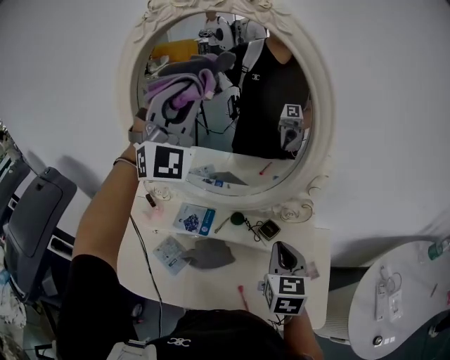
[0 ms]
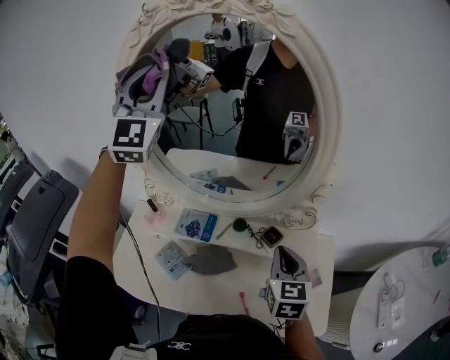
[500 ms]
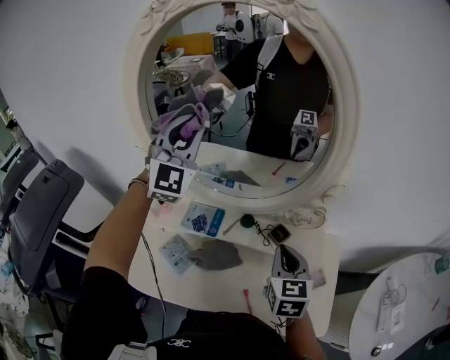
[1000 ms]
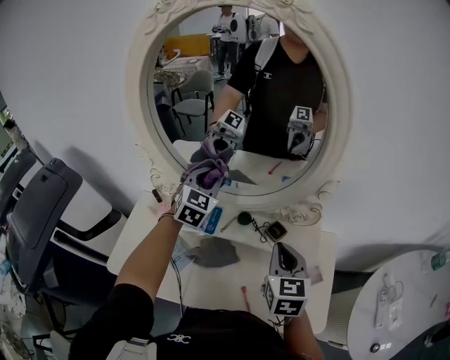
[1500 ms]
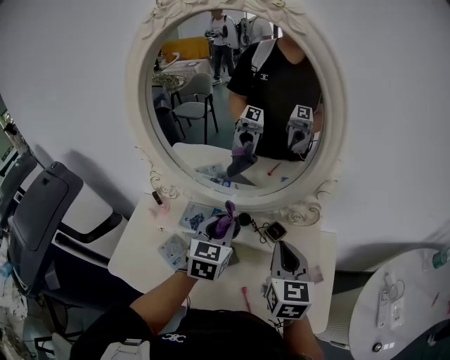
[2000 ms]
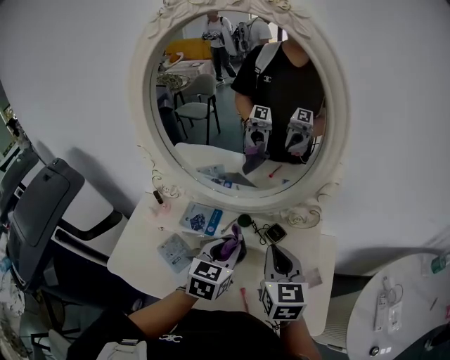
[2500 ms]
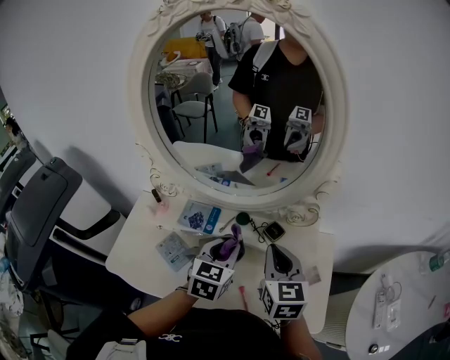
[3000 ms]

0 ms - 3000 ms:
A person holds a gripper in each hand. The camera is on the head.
0 ms - 1500 ms: The left gripper heads downward, covering about 30 cm, and points its fingers about 40 degrees further downward.
1500 ms - 3000 ms: The left gripper heads backward, downward and to the right, covering some 20 cm, and swivels about 30 degrees.

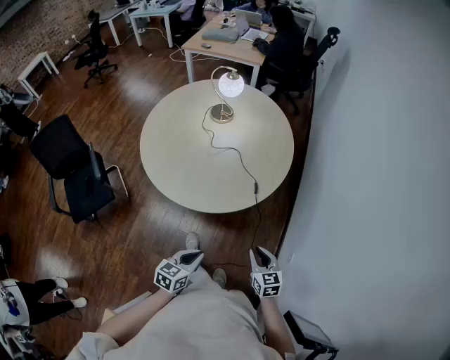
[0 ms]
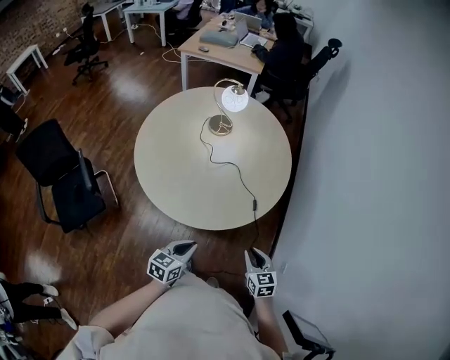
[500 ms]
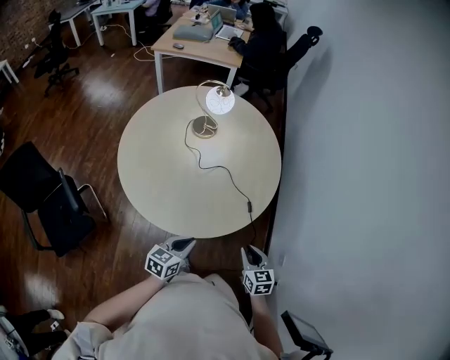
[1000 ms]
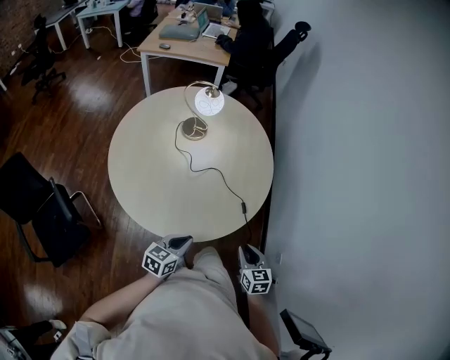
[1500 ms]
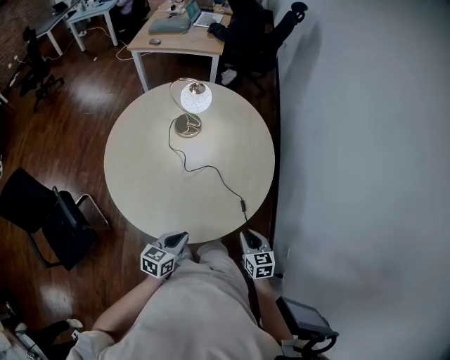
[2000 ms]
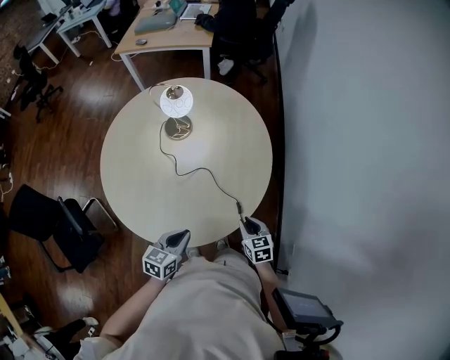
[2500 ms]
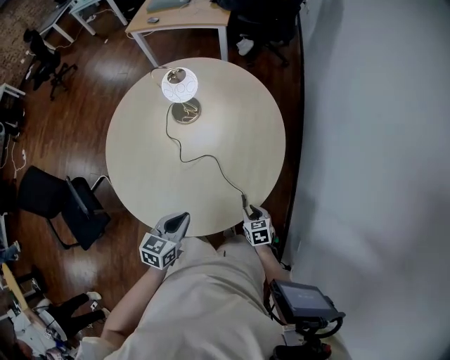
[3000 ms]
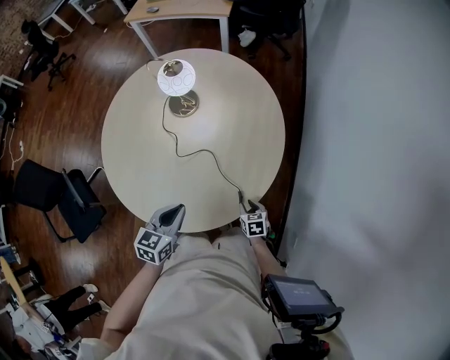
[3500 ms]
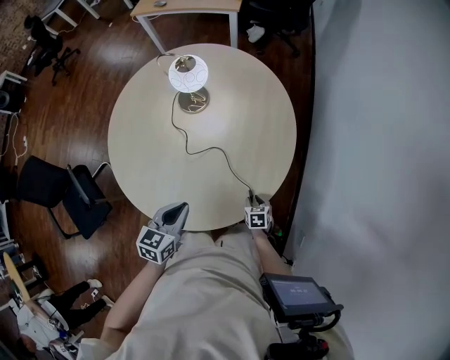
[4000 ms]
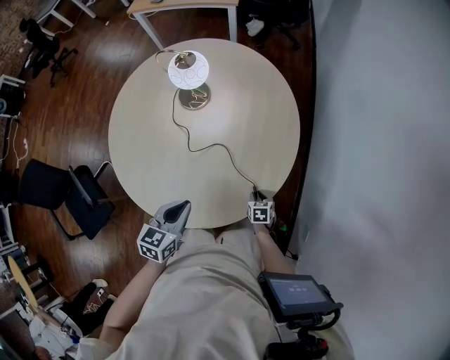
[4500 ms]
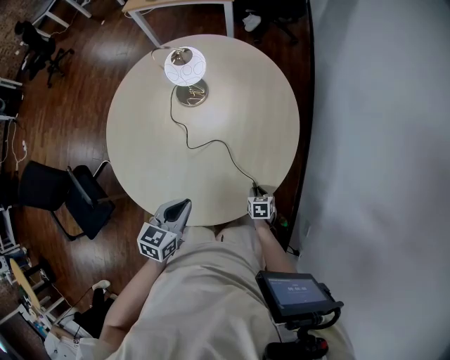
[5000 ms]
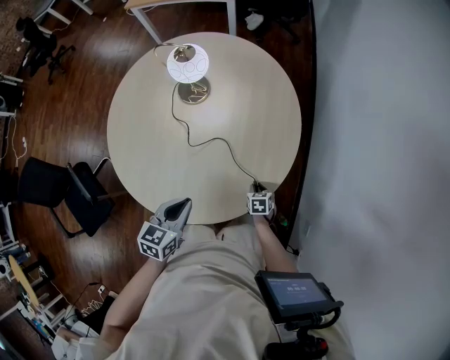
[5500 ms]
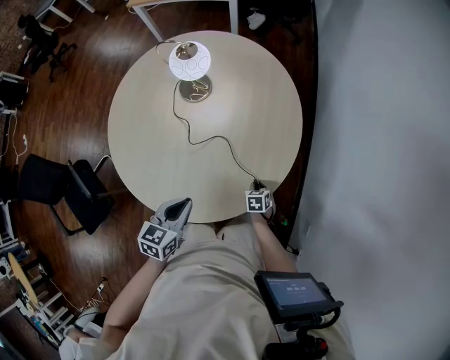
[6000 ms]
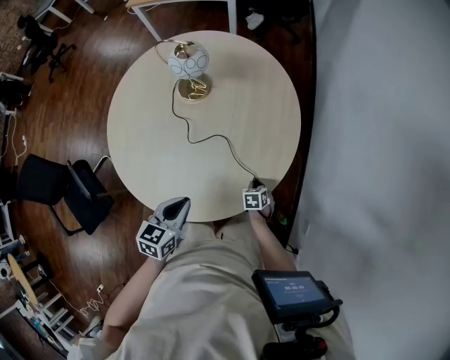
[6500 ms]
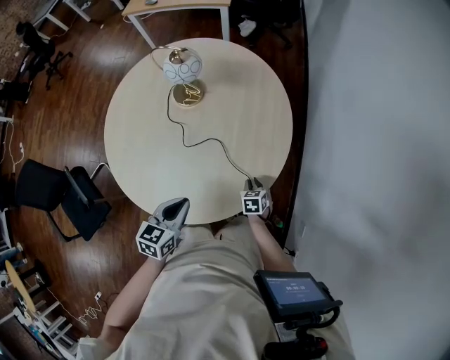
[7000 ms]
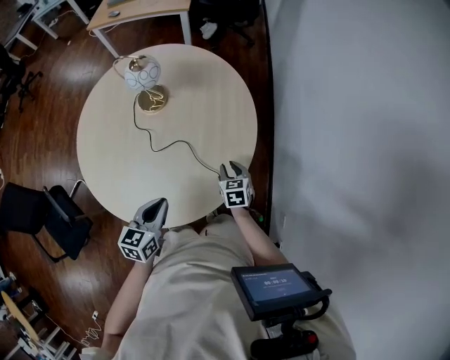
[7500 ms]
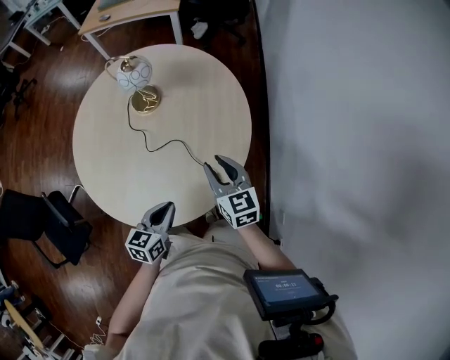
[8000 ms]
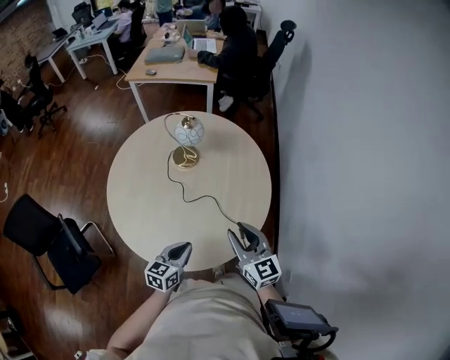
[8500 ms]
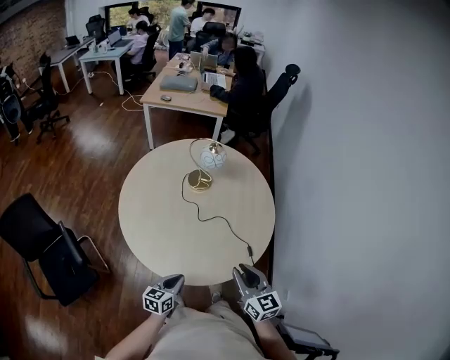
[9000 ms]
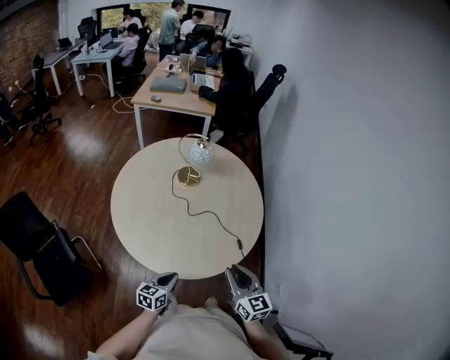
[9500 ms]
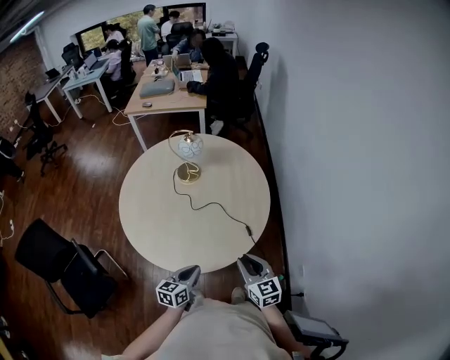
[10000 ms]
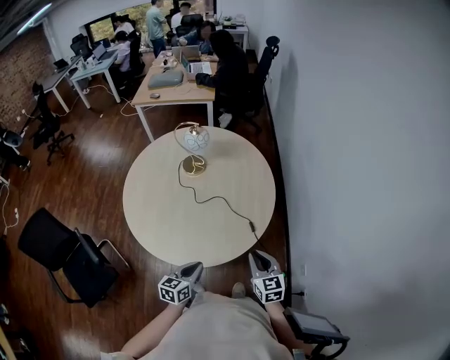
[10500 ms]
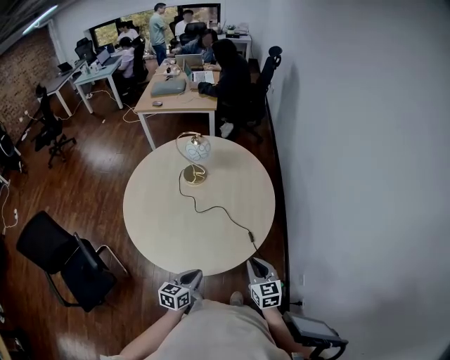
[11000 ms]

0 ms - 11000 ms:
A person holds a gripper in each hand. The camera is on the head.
0 ms - 2000 ms: Both grippers travel together forward and to the left, some 25 cm.
2000 ms - 3500 ms: The right gripper is displaced downward and forward by some 20 cm, and rotates approximately 20 degrees; the left gripper travels forward and to the right by about 15 cm.
3500 ms - 5500 ms: The right gripper travels downward by roughly 5 cm.
5500 ms - 7500 ms: The right gripper shifts about 15 cm upward and forward.
7500 ms - 9000 ms: The right gripper goes approximately 40 cm upward, backward and to the left, and points its fingers some 30 degrees further upward. Meanwhile the left gripper shifts roughly 20 cm backward and to the left.
9000 ms - 11000 ms: The left gripper is displaced to the right by approximately 10 cm. Meanwhile the right gripper is displaced to the right and downward by roughly 15 cm.

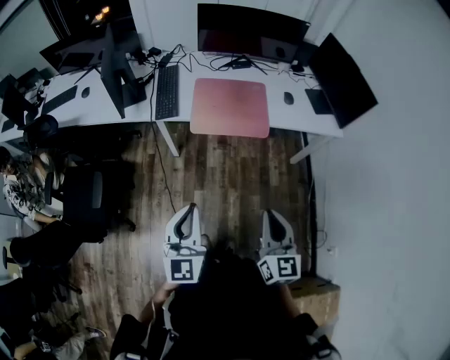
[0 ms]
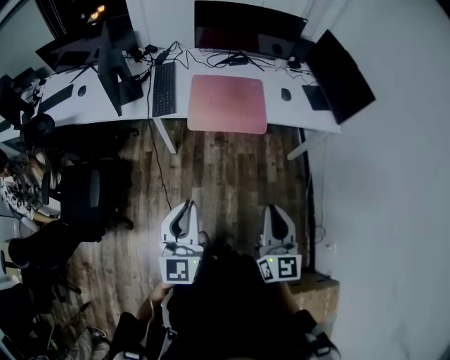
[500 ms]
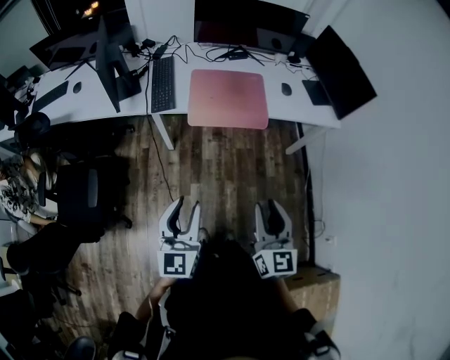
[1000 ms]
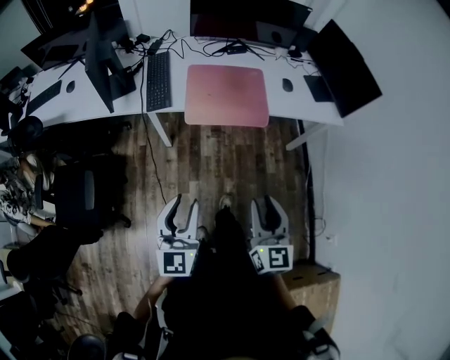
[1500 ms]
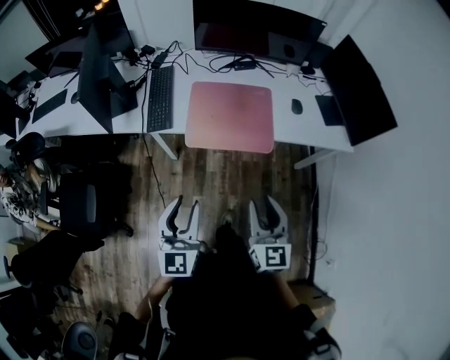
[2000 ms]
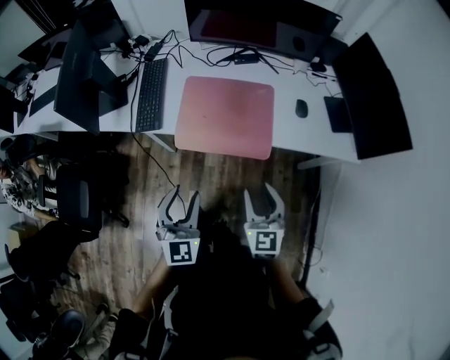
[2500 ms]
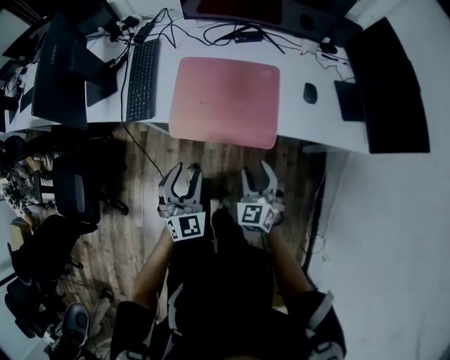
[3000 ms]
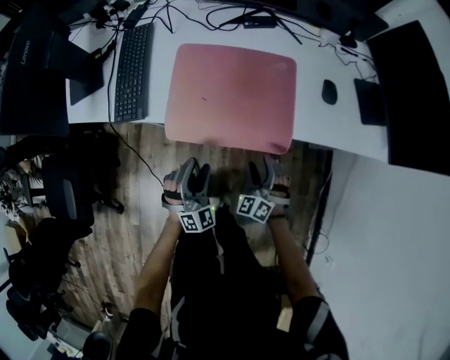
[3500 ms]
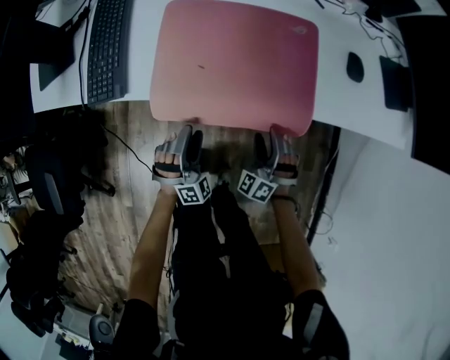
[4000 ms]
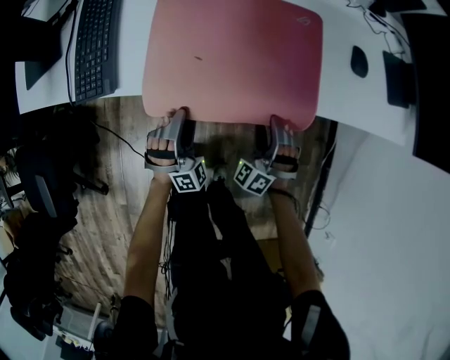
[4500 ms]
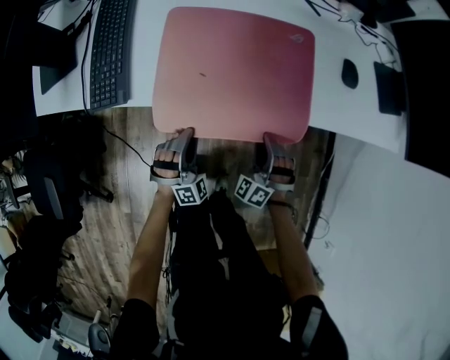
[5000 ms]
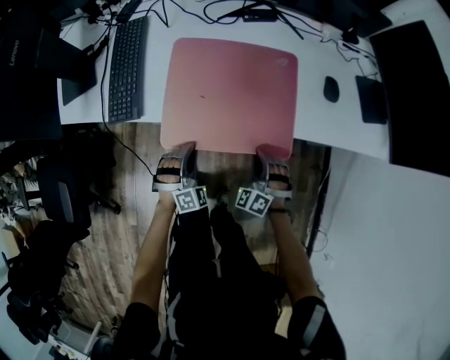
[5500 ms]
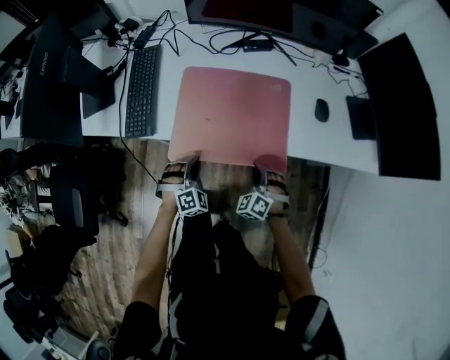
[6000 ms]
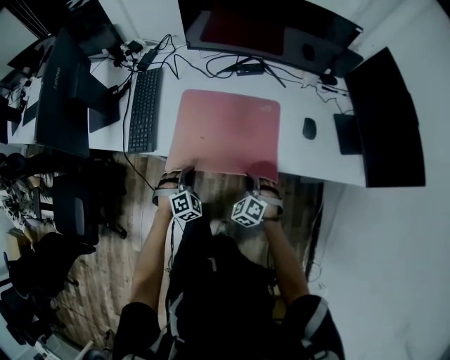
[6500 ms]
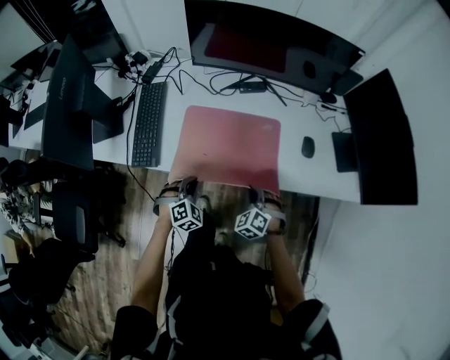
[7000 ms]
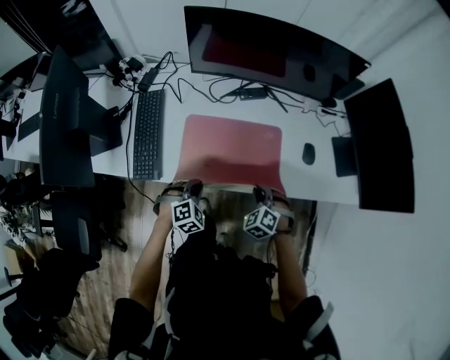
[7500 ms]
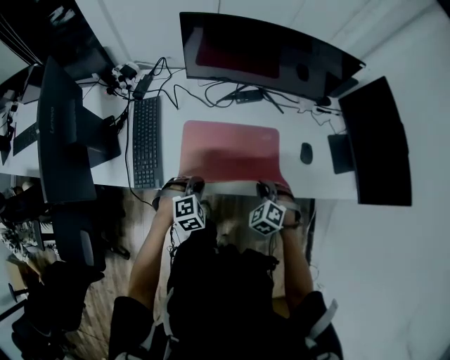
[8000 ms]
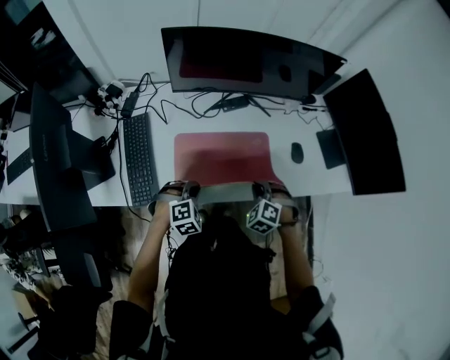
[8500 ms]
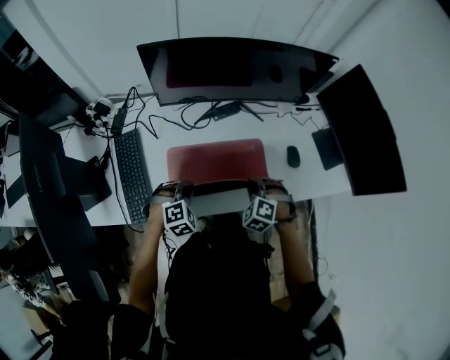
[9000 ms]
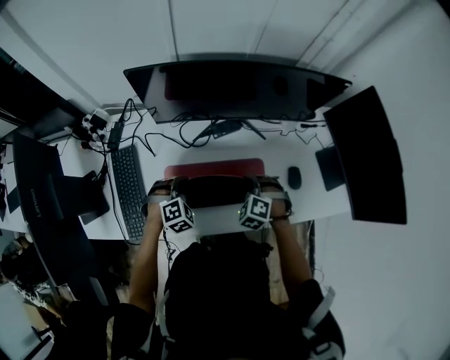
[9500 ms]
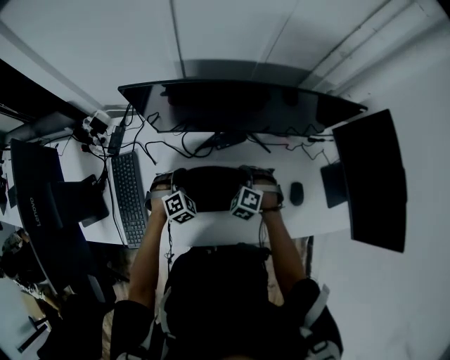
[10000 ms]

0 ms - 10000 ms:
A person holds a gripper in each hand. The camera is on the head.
0 ms - 2000 ms: Both grippers move forward, approximately 20 cm. The left gripper opens. The right gripper opens its fingers.
2000 ms - 4000 ms: The grippers both shift downward and forward by some 50 cm. The left gripper twists some 60 degrees clockwise, seen from behind, and opens. The right gripper rotates around the line of its fingers by roughly 70 degrees, counterclockwise from behind, and opens its fingers.
4000 ms - 6000 ms: The grippers both shift upward by approximately 5 cm. The left gripper turns by approximately 20 degrees, and closes its fingers, while the right gripper closes.
6000 ms - 8000 ms: The grippers both shift upward and forward by about 15 cm. The left gripper changes its angle by about 20 degrees.
8000 ms - 10000 ms: The two grippers go roughly 30 cm forward.

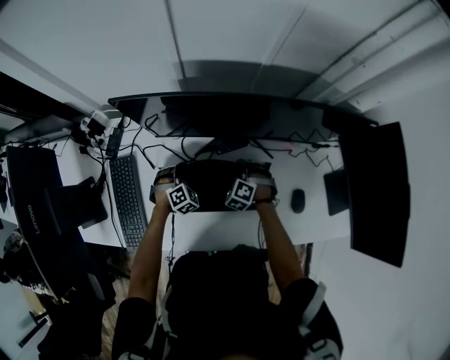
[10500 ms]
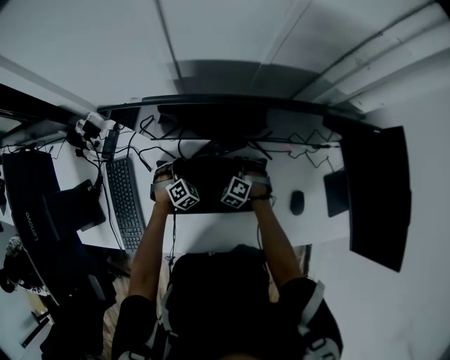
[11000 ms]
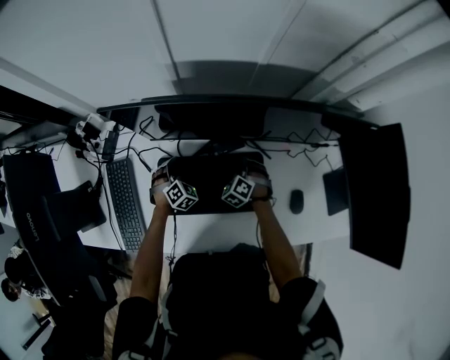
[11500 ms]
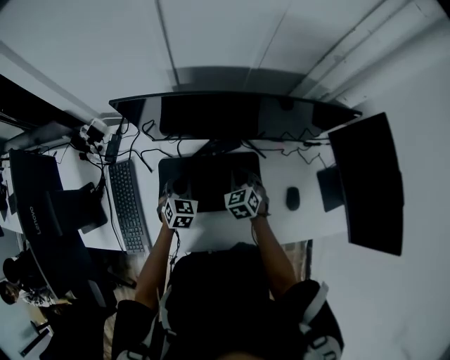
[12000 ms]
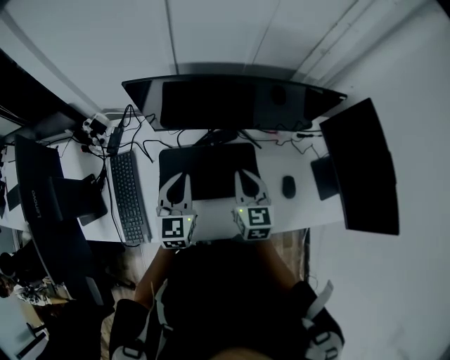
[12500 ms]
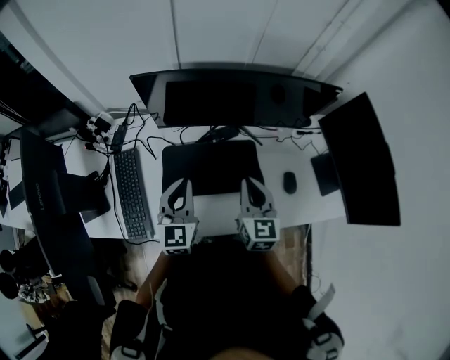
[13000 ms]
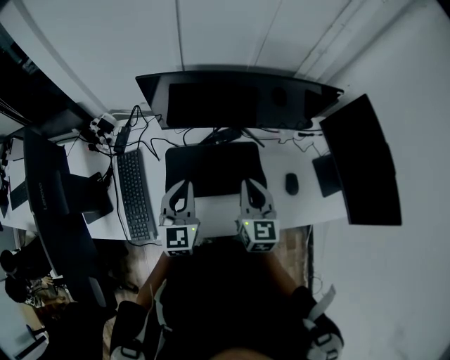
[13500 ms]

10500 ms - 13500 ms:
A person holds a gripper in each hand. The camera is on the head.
10500 ms - 12000 ms: The grippers both shift upward by approximately 10 cm. The right gripper rolls clockwise, seen from behind, by about 40 degrees, while the left gripper changes its angle by some 40 degrees, and opens and closes again.
12000 ms - 13500 ms: Both grippers move upward and backward, about 25 cm. The right gripper turns by approximately 40 degrees. The left gripper rotates approximately 30 degrees.
